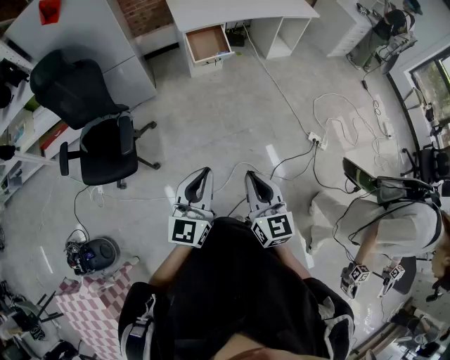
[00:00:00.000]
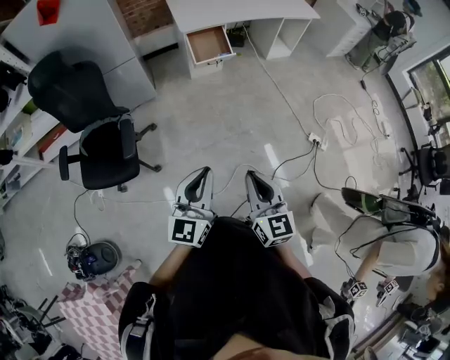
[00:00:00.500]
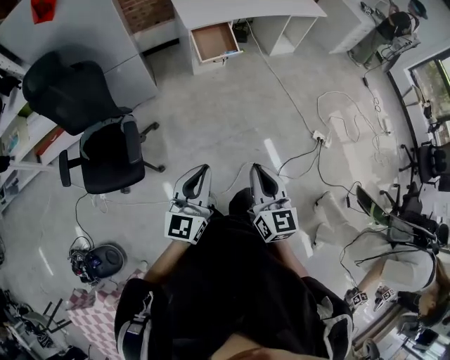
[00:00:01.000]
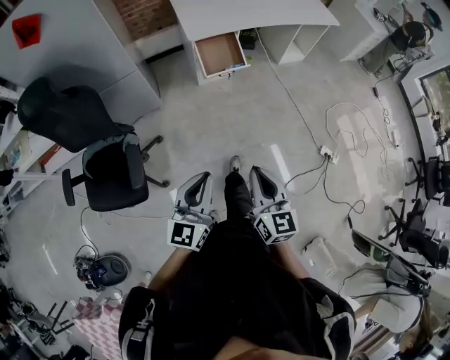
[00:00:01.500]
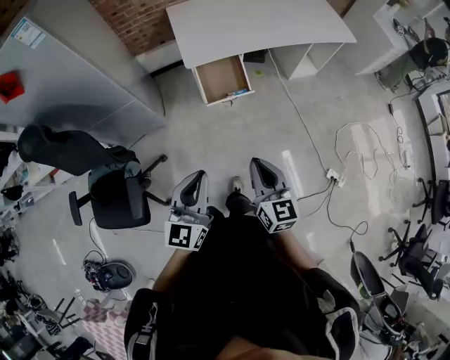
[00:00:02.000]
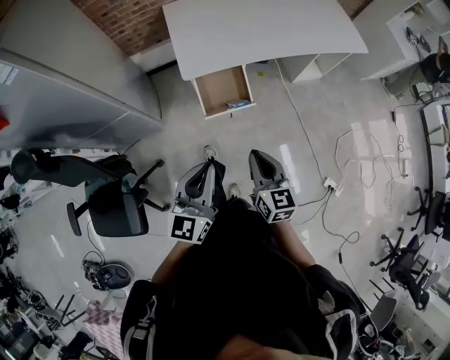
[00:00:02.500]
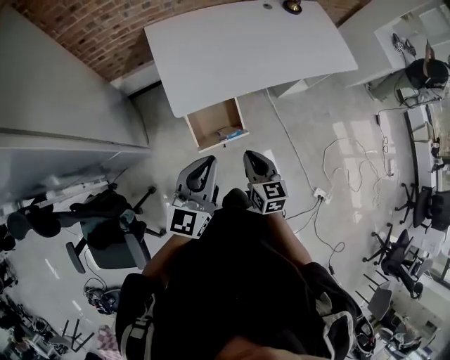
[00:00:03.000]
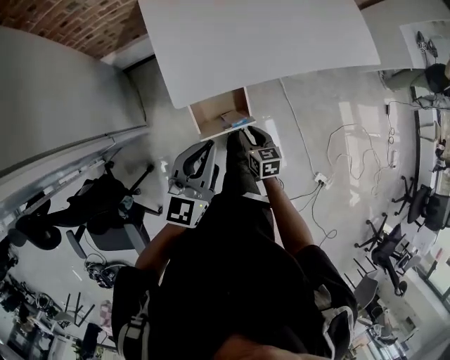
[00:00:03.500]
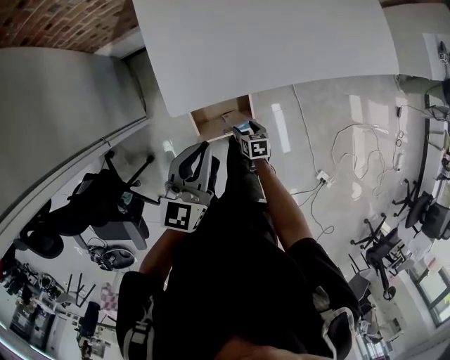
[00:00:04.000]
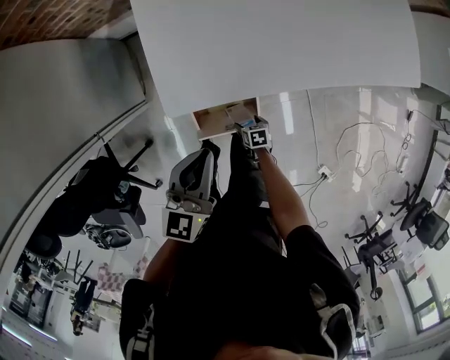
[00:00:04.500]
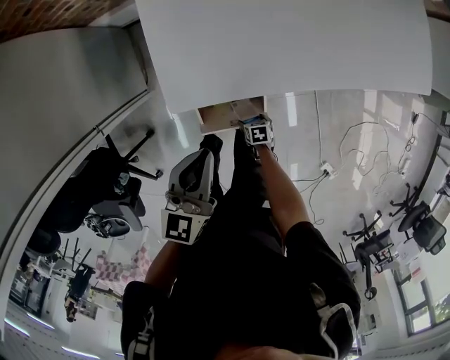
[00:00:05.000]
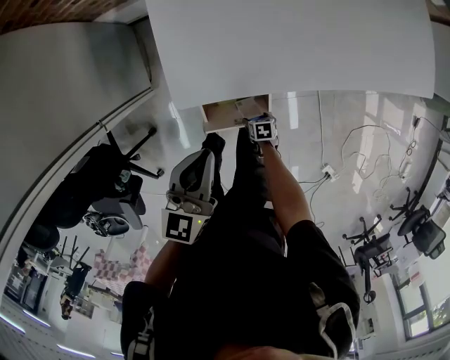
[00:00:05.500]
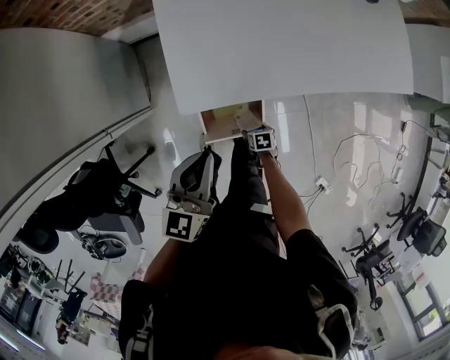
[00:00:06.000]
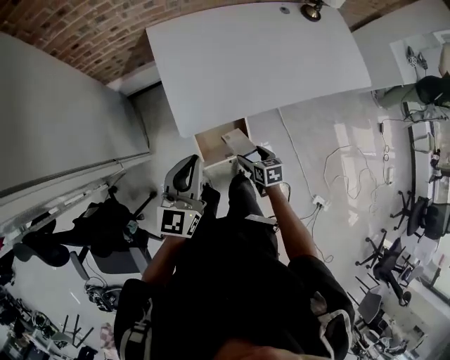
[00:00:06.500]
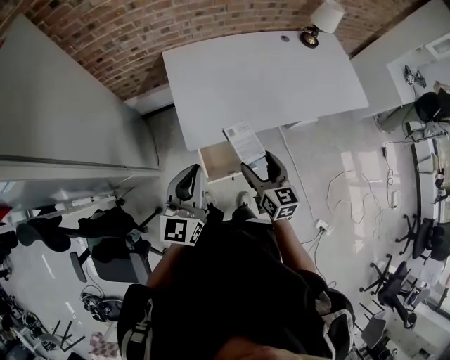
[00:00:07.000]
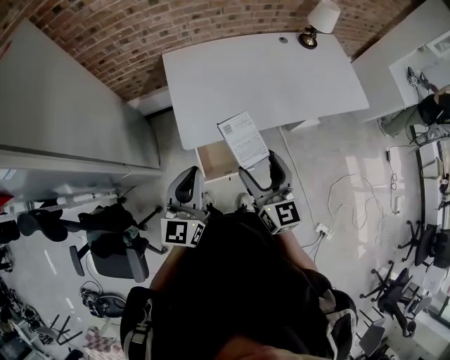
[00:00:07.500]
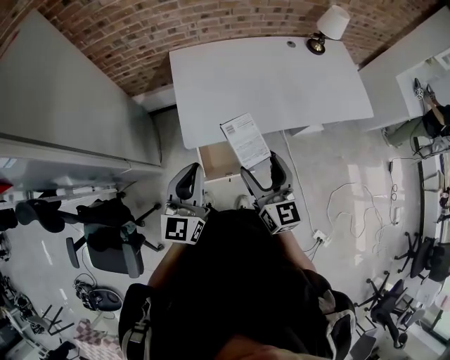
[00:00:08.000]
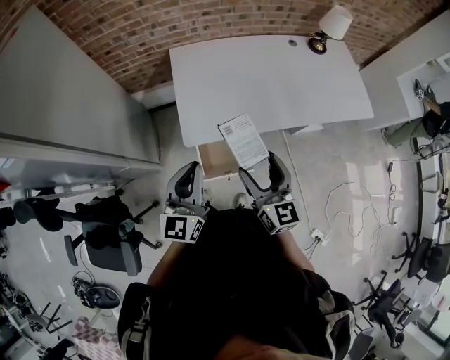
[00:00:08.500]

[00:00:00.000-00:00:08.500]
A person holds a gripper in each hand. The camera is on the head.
00:00:00.000 to 00:00:02.000: Both grippers are carried forward, some 40 cm.
00:00:02.000 to 00:00:04.000: The pair of grippers is taken forward, roughly 50 cm. The right gripper moves downward, about 40 cm, angles its fingers downward, by some 50 degrees, and opens.
00:00:04.000 to 00:00:06.500: The left gripper goes approximately 10 cm to the left and upward. The right gripper goes approximately 15 cm upward.
00:00:06.500 to 00:00:08.500: The left gripper heads upward, covering roughly 5 cm. The right gripper travels upward by about 30 cm, and points its fingers some 40 degrees further upward.

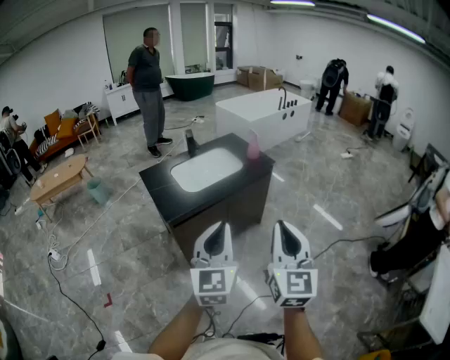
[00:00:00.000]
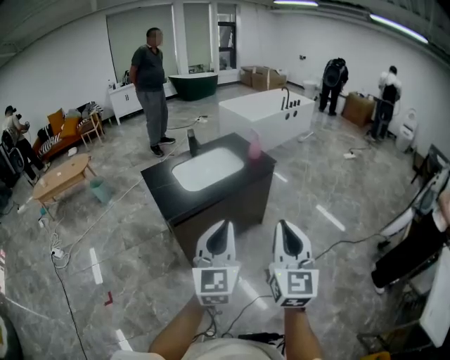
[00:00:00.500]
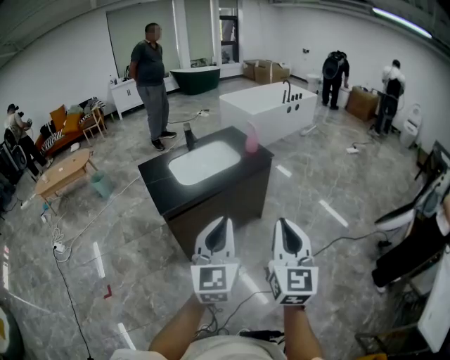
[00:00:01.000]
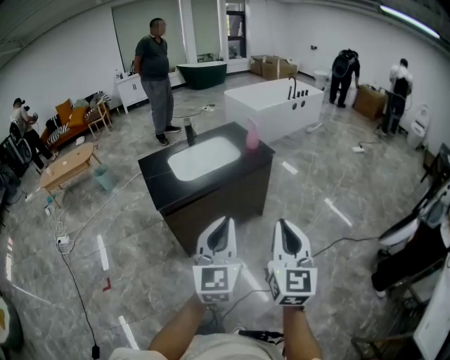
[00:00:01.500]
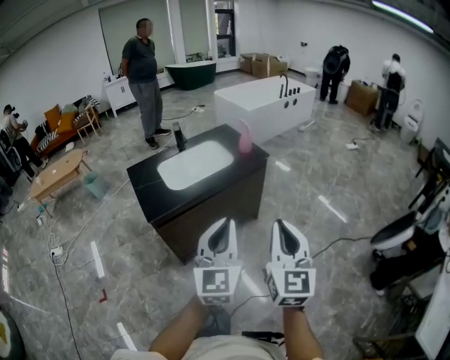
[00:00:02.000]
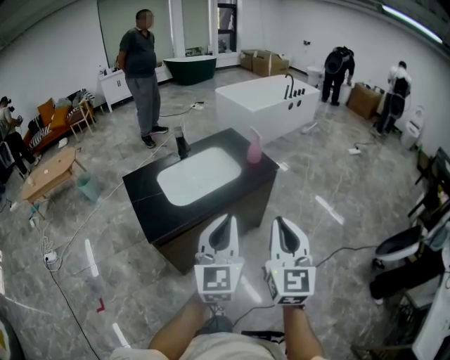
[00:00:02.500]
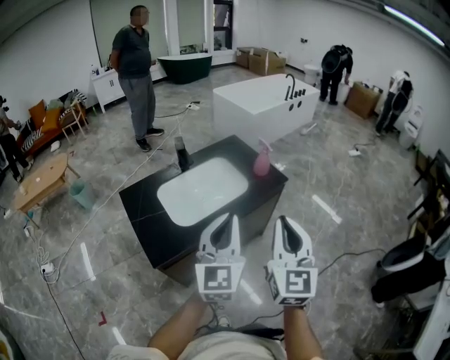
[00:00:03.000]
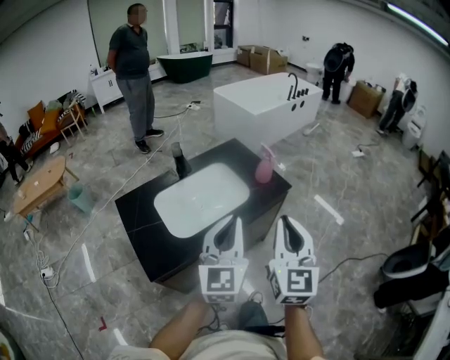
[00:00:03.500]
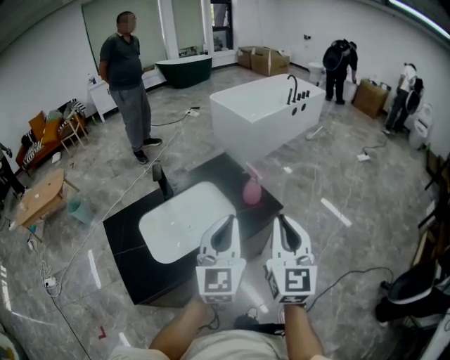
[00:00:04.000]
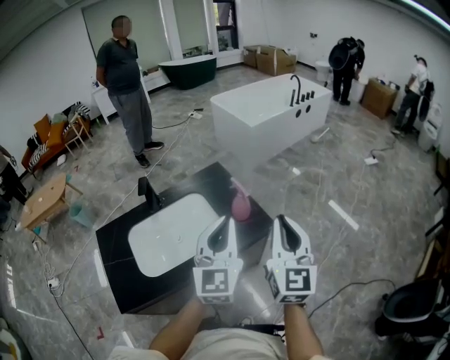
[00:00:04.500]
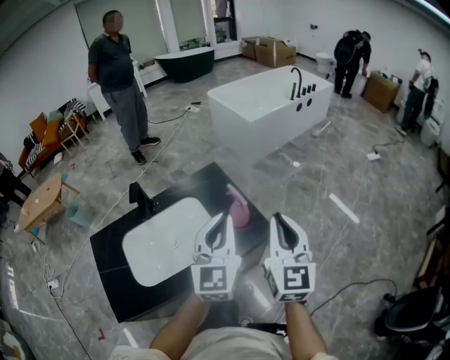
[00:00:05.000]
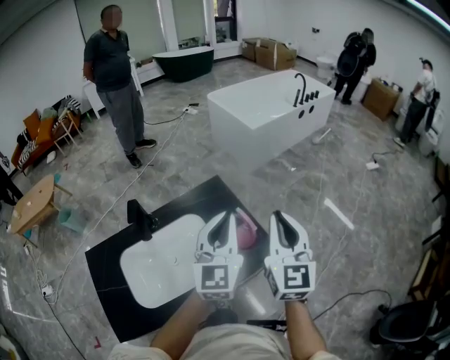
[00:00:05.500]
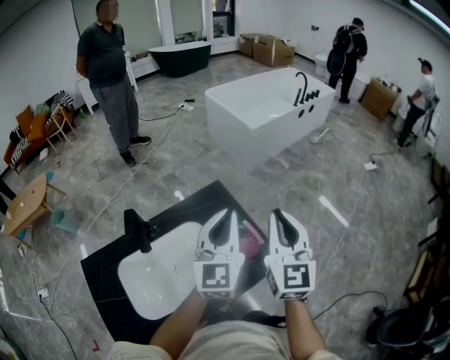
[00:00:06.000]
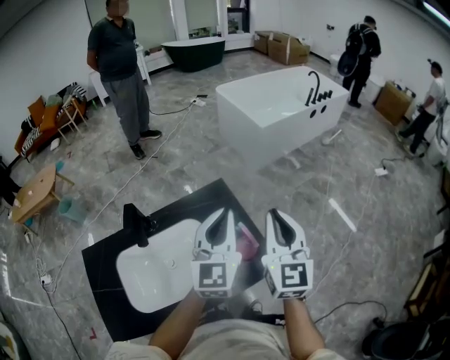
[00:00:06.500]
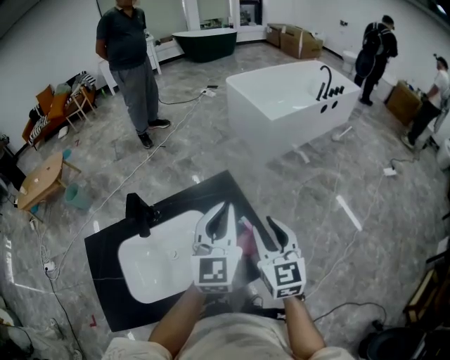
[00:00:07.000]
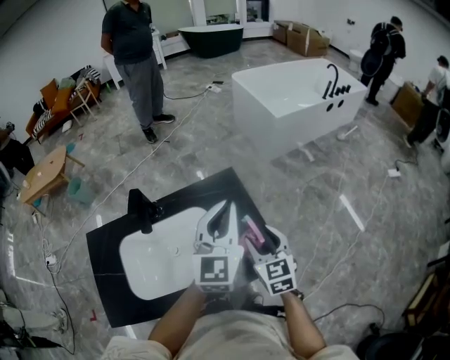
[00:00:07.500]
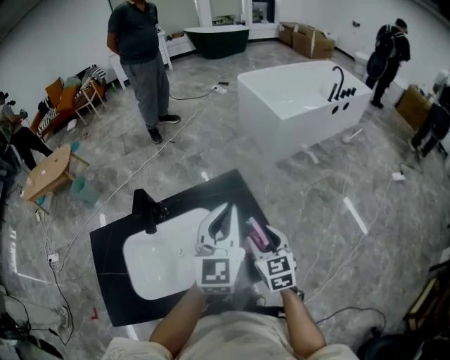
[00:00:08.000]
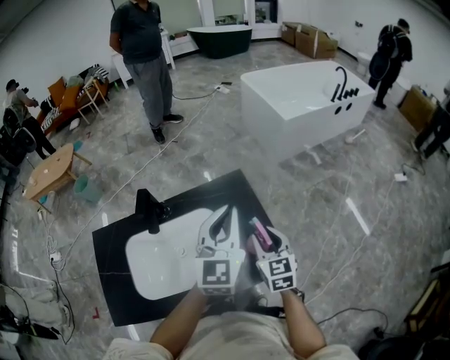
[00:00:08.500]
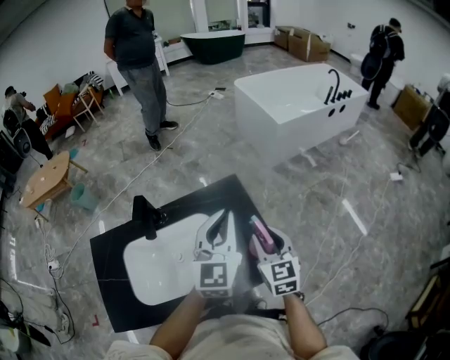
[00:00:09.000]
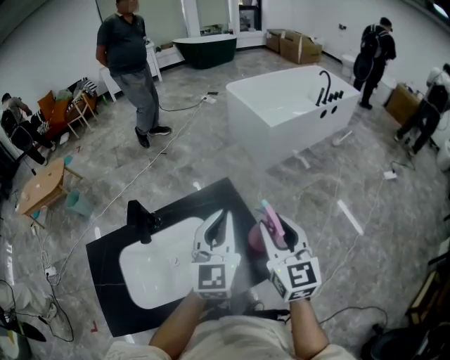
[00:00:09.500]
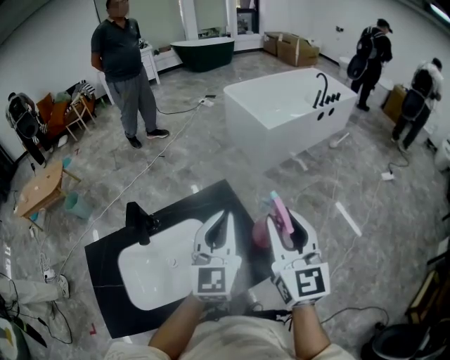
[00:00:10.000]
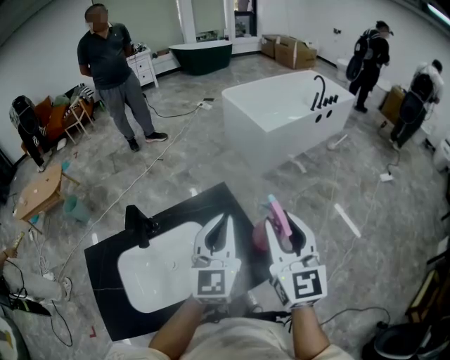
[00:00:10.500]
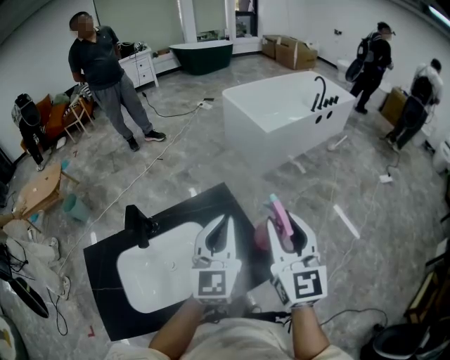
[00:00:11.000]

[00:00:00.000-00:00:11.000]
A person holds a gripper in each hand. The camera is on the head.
00:00:00.000 to 00:00:02.000: The left gripper travels to the right and forward by roughly 15 cm. The right gripper heads to the right, forward and downward, covering approximately 15 cm.
00:00:02.000 to 00:00:03.500: The two grippers go some 30 cm forward.
00:00:03.500 to 00:00:05.500: The two grippers go about 35 cm forward.
00:00:05.500 to 00:00:07.500: The left gripper moves forward, about 10 cm. The right gripper shifts roughly 20 cm downward, rotates approximately 30 degrees, and opens up.
00:00:07.500 to 00:00:09.000: The grippers make only small movements.
00:00:09.000 to 00:00:11.000: The right gripper is displaced upward by roughly 20 cm, and changes its angle by approximately 20 degrees.

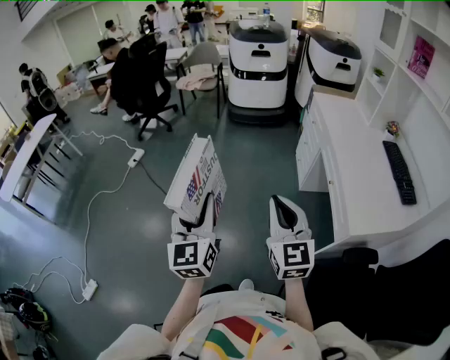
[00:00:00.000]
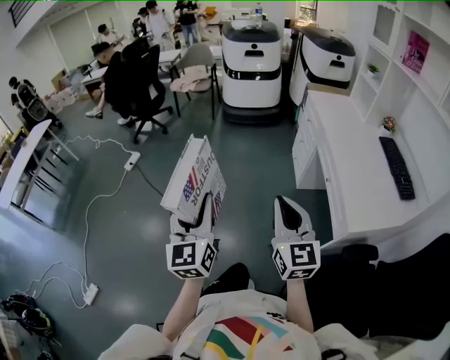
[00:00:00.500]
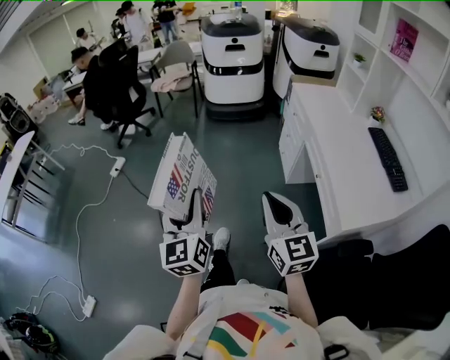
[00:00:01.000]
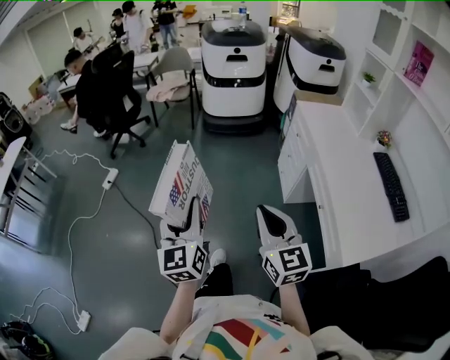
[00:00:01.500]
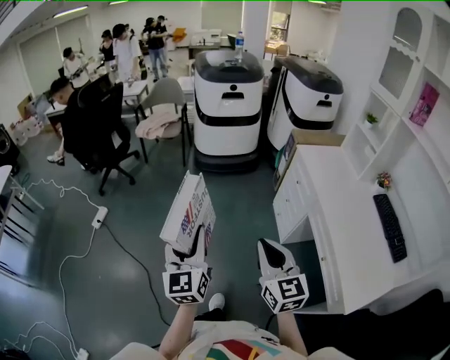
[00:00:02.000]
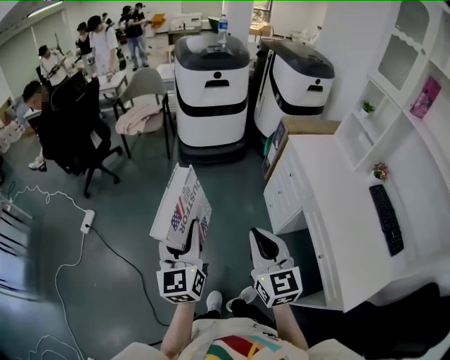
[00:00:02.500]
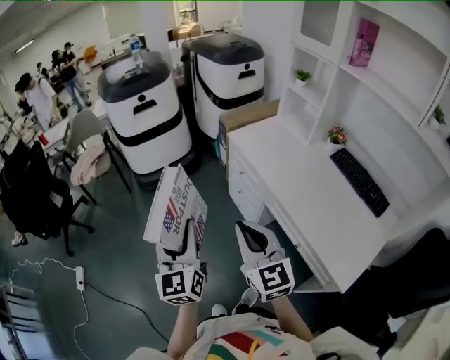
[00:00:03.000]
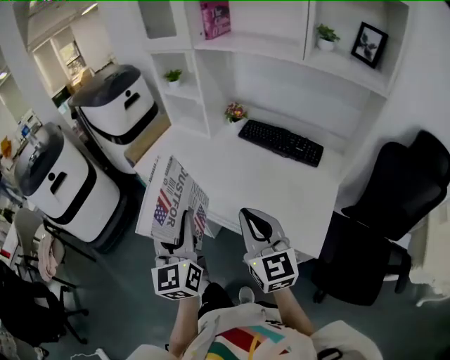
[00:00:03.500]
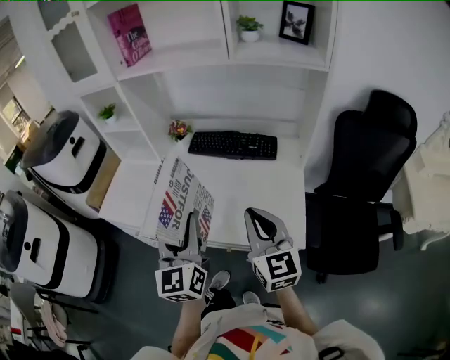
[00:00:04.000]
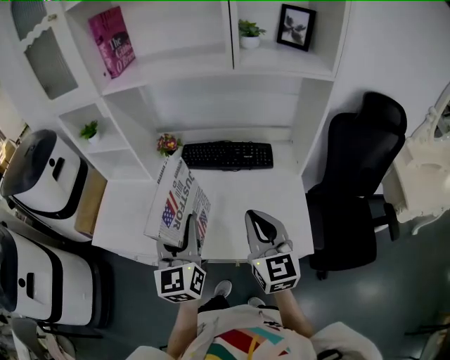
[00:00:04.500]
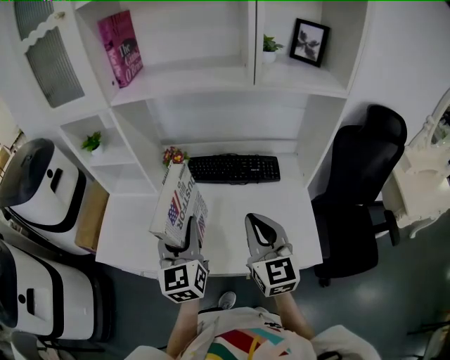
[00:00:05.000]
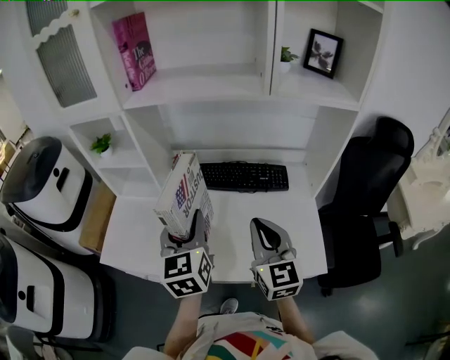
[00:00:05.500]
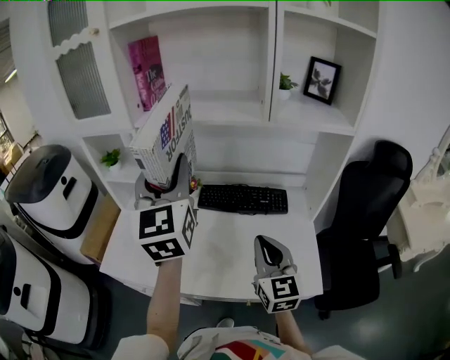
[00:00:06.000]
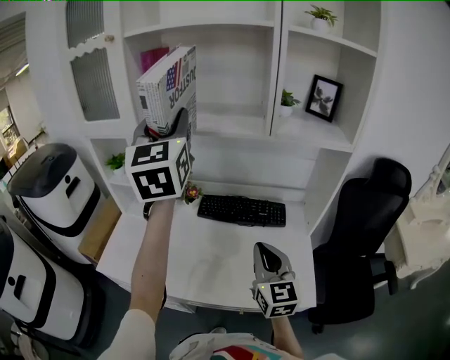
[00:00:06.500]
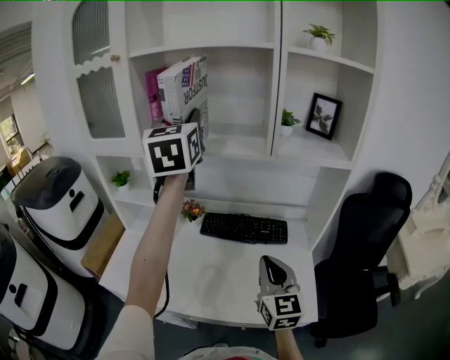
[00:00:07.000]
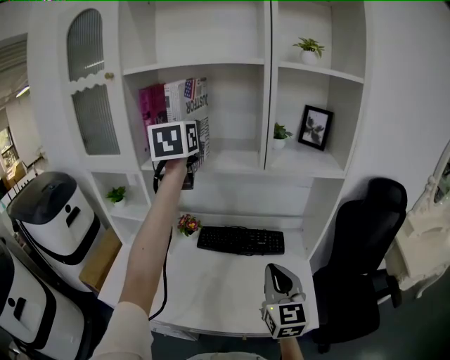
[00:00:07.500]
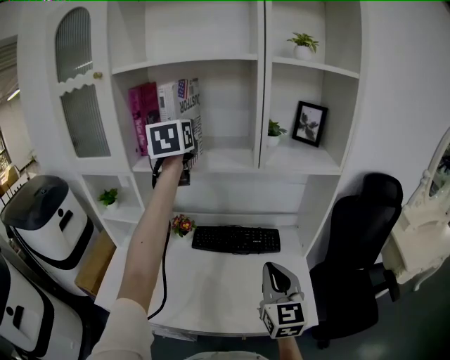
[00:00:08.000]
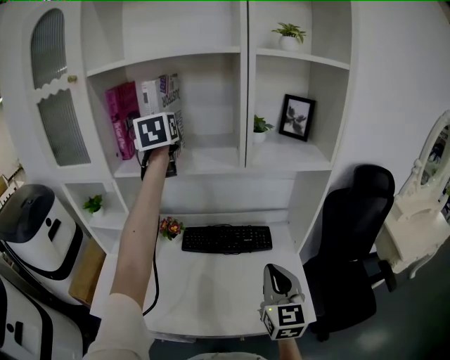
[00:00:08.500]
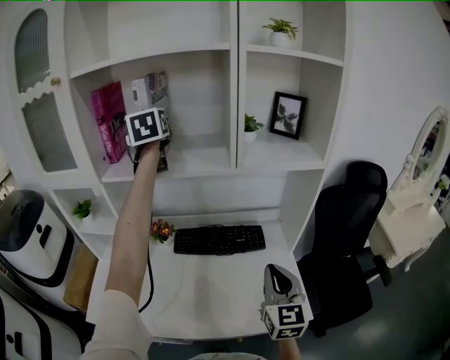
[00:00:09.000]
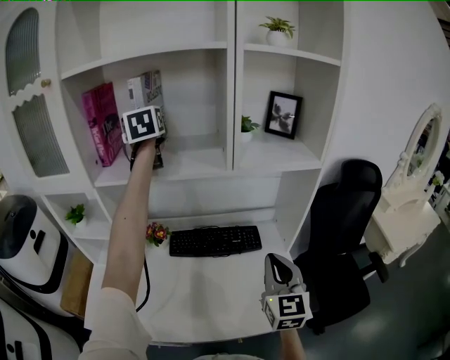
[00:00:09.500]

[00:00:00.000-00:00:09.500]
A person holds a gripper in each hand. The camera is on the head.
00:00:00.000 to 00:00:02.000: Both grippers travel together forward, roughly 30 cm.
00:00:02.000 to 00:00:04.000: The two grippers travel together, some 50 cm. The right gripper changes its angle by roughly 70 degrees; the left gripper turns by some 70 degrees.
00:00:04.000 to 00:00:05.500: The grippers both shift forward and to the left by some 15 cm.
00:00:05.500 to 00:00:07.500: The right gripper travels to the right and upward by roughly 10 cm. The left gripper goes some 40 cm upward and forward.
00:00:07.500 to 00:00:09.500: The right gripper travels to the right by approximately 5 cm; the left gripper travels forward by approximately 15 cm.
